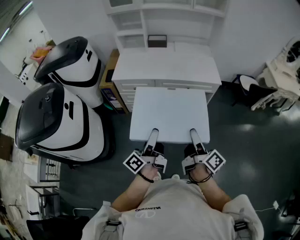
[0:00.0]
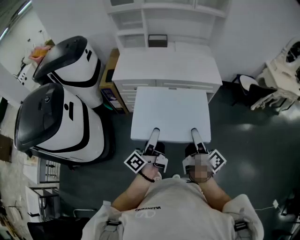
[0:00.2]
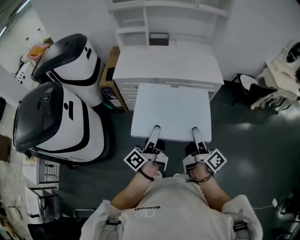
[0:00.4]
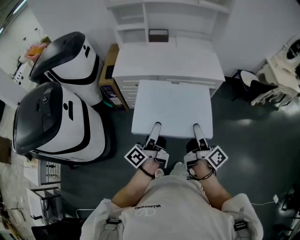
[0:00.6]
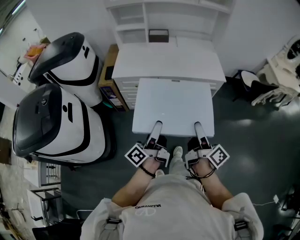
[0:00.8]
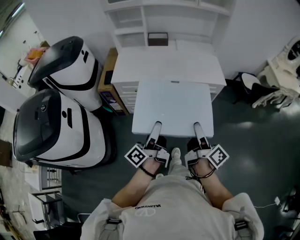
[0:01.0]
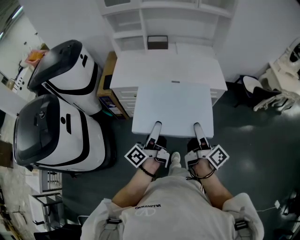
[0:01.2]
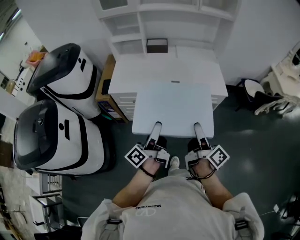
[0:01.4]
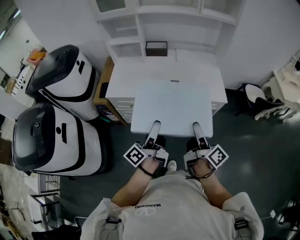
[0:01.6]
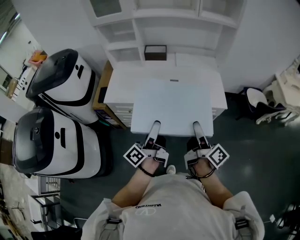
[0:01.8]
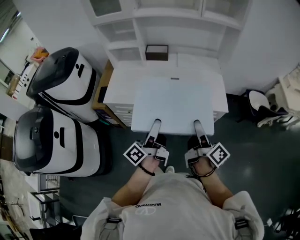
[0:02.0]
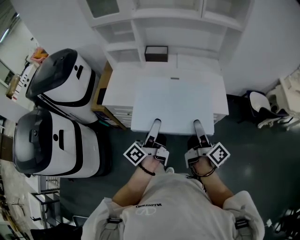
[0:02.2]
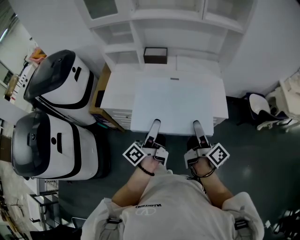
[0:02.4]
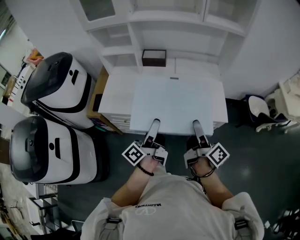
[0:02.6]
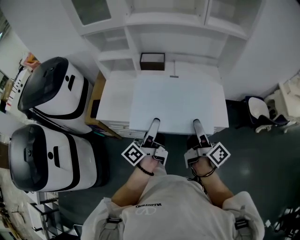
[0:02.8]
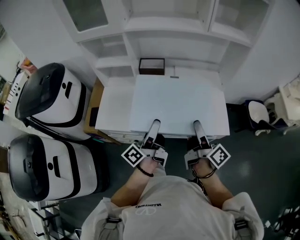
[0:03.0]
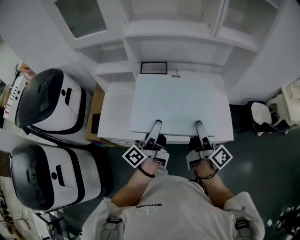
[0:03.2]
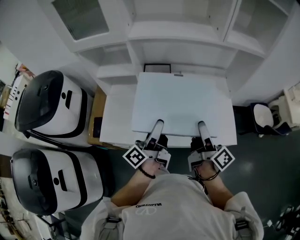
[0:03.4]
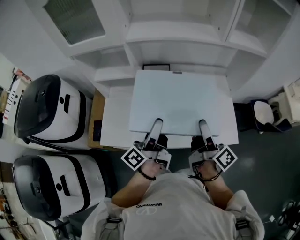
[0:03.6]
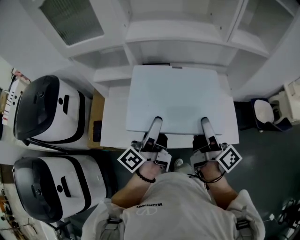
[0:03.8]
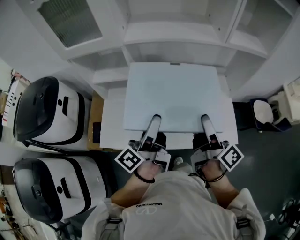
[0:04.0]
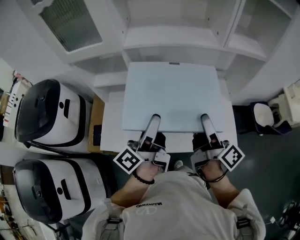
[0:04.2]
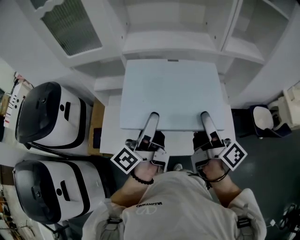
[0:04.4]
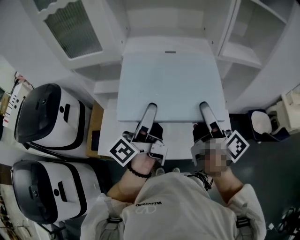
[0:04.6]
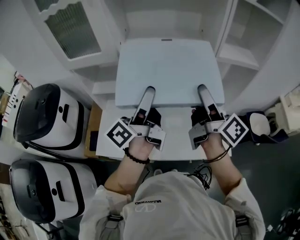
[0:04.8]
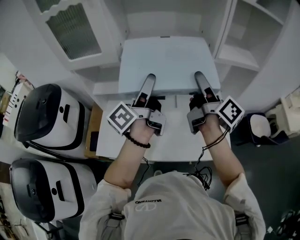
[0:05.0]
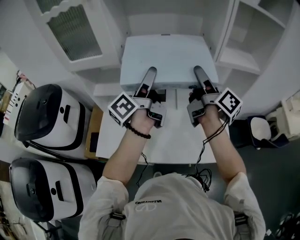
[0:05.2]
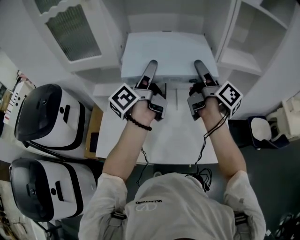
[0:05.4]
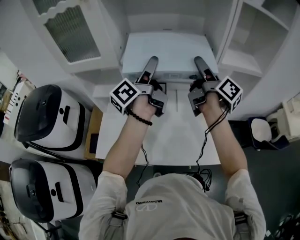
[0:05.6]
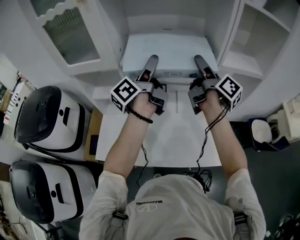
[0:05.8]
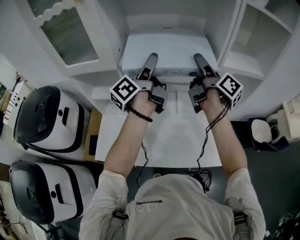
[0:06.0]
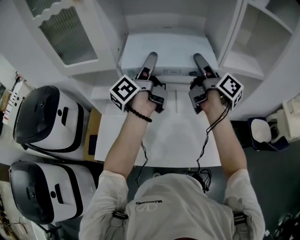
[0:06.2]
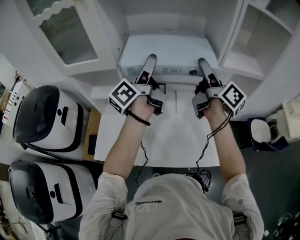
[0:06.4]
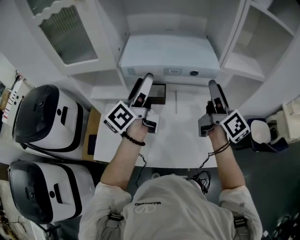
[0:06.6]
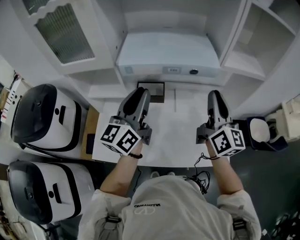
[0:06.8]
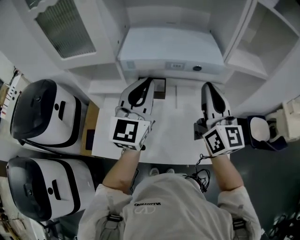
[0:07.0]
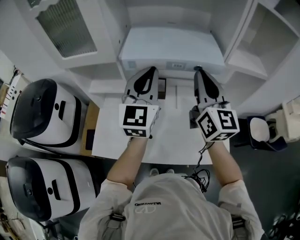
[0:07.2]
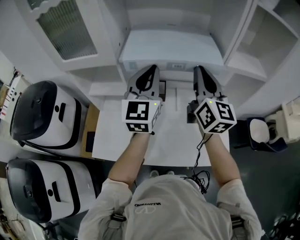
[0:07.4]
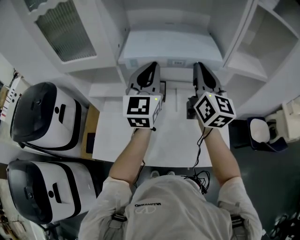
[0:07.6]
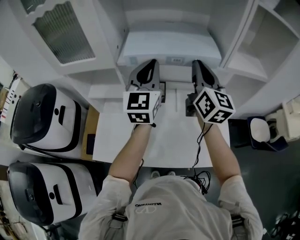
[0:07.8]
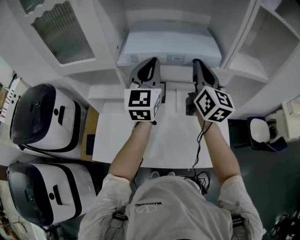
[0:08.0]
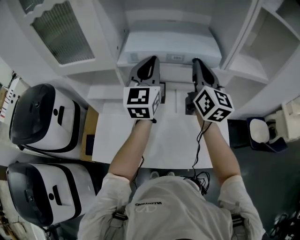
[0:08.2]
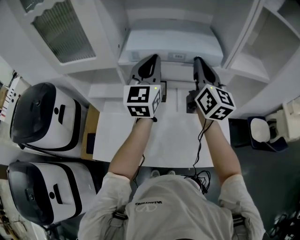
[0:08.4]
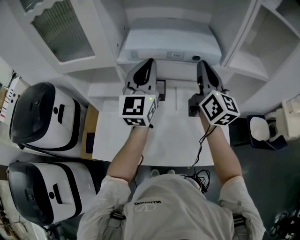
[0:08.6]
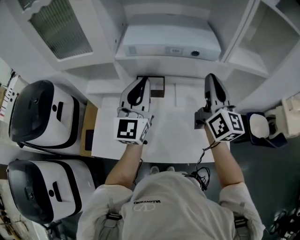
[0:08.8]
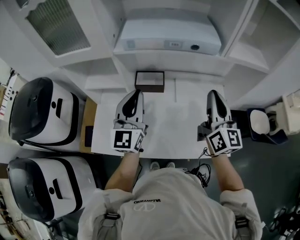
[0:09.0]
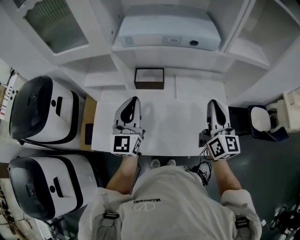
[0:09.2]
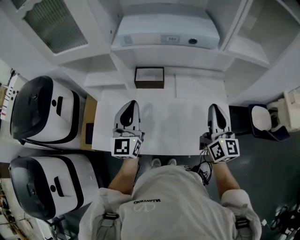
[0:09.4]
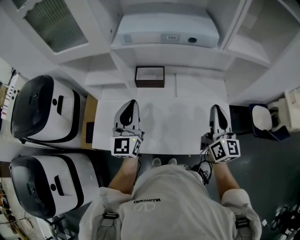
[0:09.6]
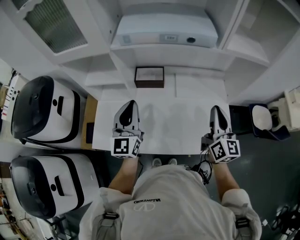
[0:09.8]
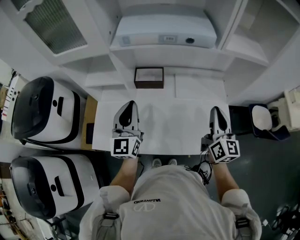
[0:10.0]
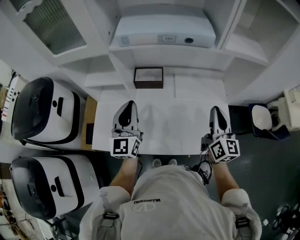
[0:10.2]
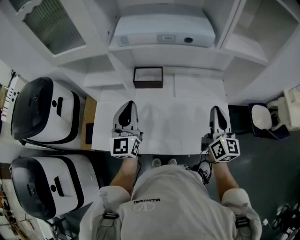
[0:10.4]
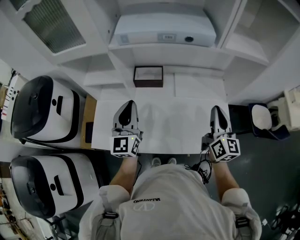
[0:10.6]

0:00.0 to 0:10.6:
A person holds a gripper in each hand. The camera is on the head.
0:00.0 to 0:01.6: Both grippers travel together forward, about 25 cm.
0:01.6 to 0:03.0: Both grippers move forward, approximately 25 cm.
0:03.0 to 0:04.6: Both grippers travel together forward and upward, roughly 20 cm.
0:04.6 to 0:06.0: The grippers both shift forward by about 20 cm.
0:06.0 to 0:07.6: The right gripper travels backward and back again, some 15 cm each way, twists approximately 60 degrees counterclockwise, seen from behind, and closes; the left gripper goes backward and returns, approximately 10 cm each way, rolls clockwise, seen from behind, by approximately 70 degrees, and closes up.
0:07.6 to 0:09.0: The left gripper heads downward and backward, covering some 10 cm. Meanwhile the right gripper goes roughly 15 cm backward, downward and to the right.
0:09.0 to 0:10.6: The left gripper is displaced downward by about 5 cm. The right gripper moves downward and to the right, roughly 10 cm.

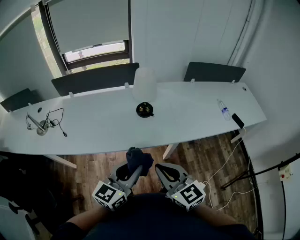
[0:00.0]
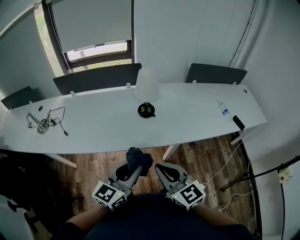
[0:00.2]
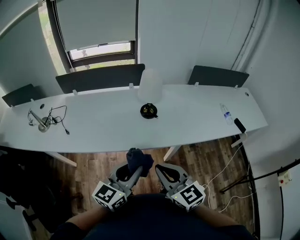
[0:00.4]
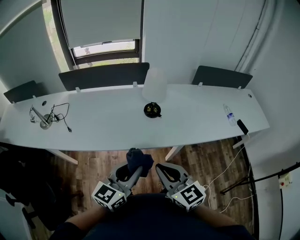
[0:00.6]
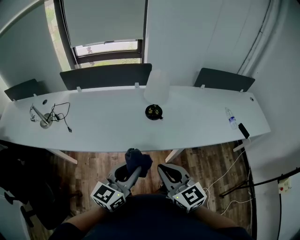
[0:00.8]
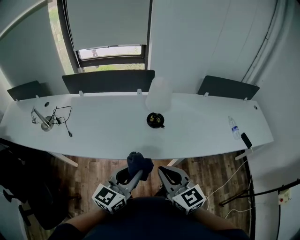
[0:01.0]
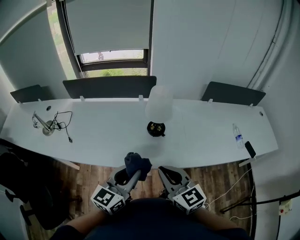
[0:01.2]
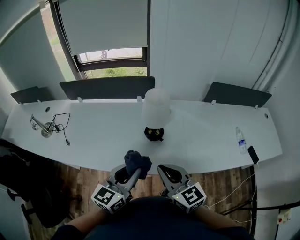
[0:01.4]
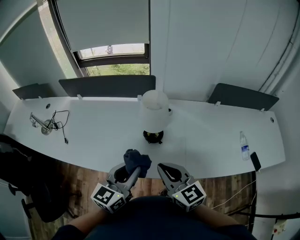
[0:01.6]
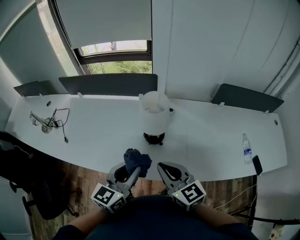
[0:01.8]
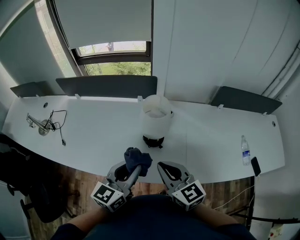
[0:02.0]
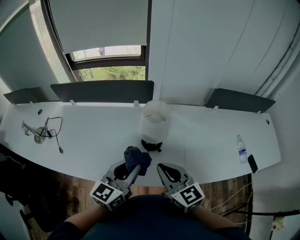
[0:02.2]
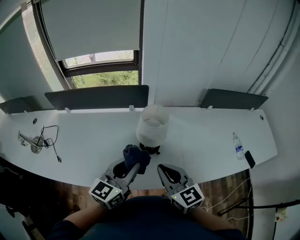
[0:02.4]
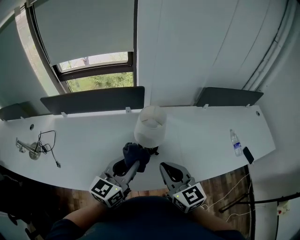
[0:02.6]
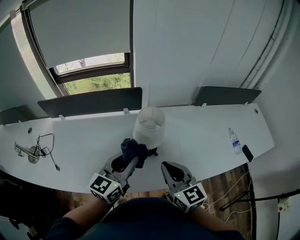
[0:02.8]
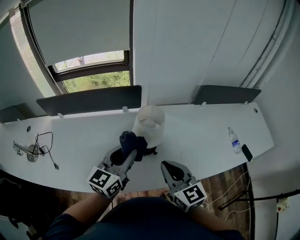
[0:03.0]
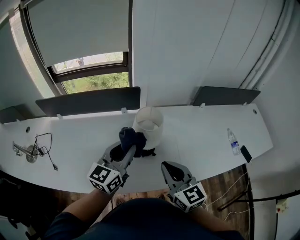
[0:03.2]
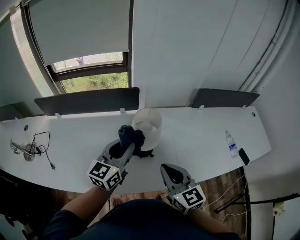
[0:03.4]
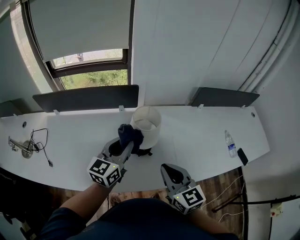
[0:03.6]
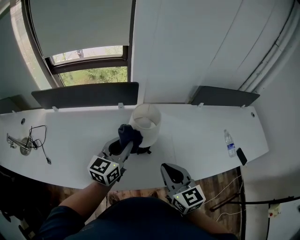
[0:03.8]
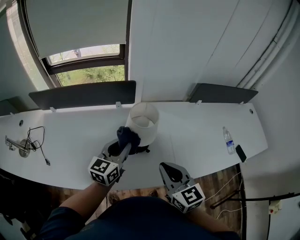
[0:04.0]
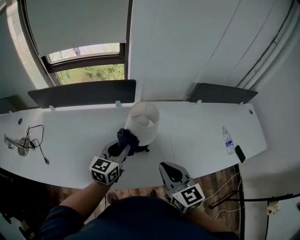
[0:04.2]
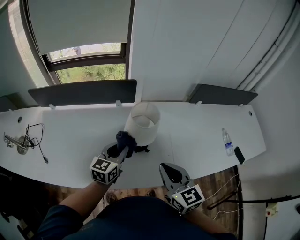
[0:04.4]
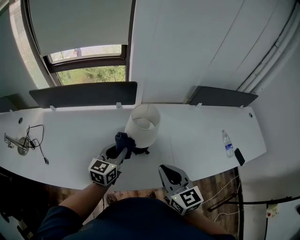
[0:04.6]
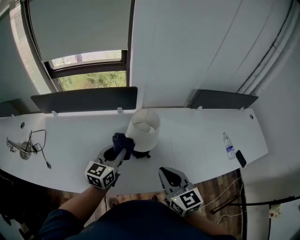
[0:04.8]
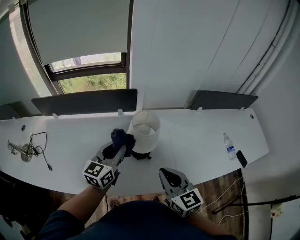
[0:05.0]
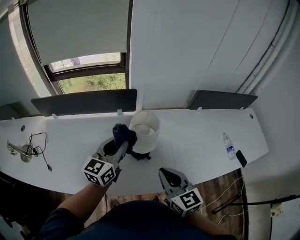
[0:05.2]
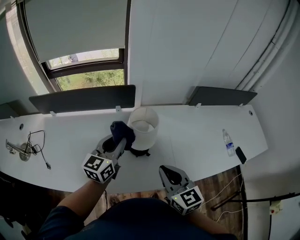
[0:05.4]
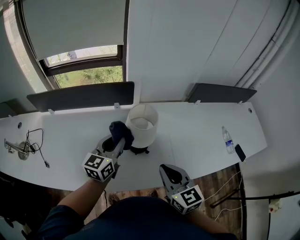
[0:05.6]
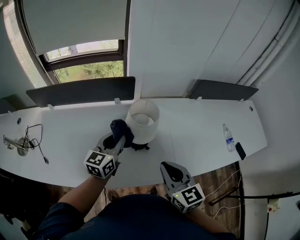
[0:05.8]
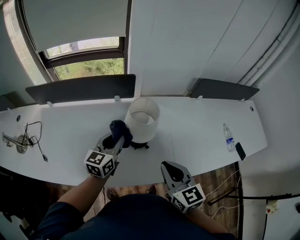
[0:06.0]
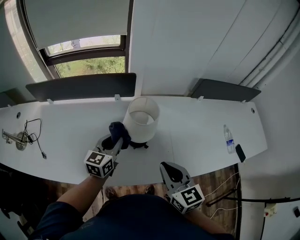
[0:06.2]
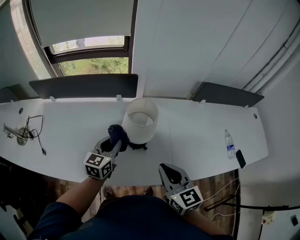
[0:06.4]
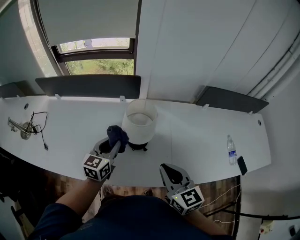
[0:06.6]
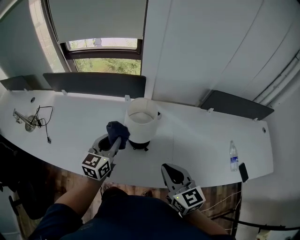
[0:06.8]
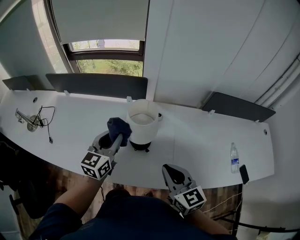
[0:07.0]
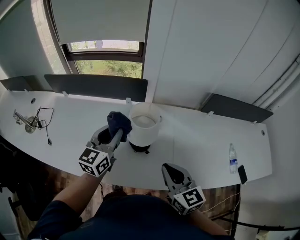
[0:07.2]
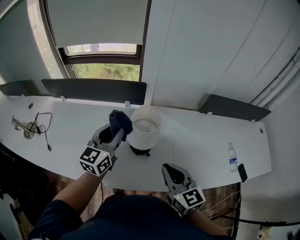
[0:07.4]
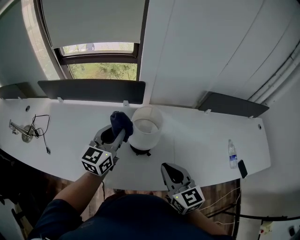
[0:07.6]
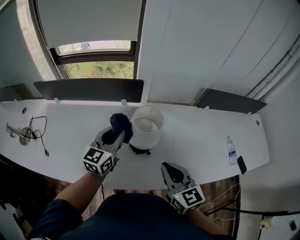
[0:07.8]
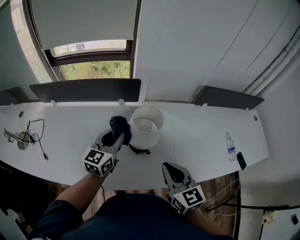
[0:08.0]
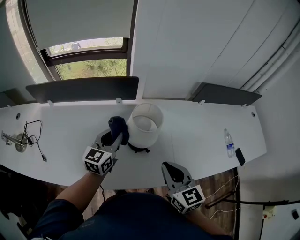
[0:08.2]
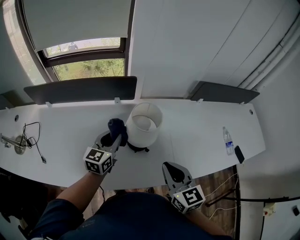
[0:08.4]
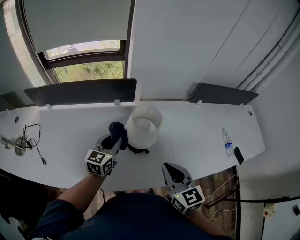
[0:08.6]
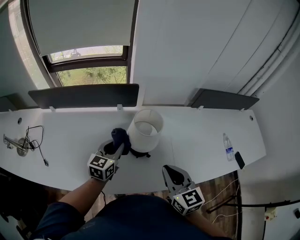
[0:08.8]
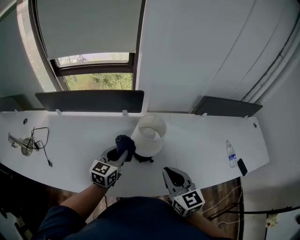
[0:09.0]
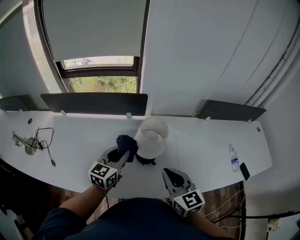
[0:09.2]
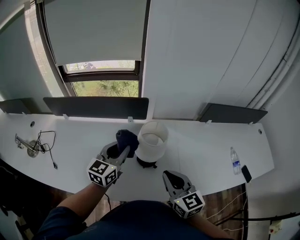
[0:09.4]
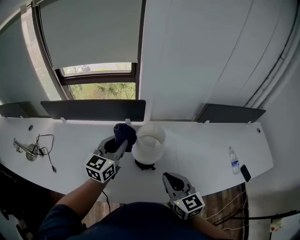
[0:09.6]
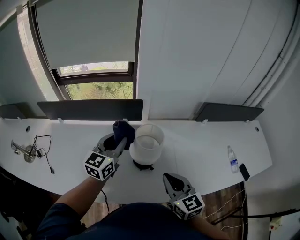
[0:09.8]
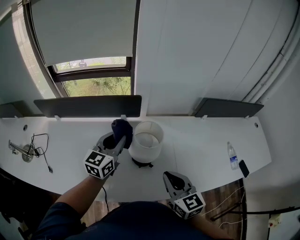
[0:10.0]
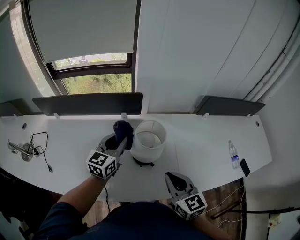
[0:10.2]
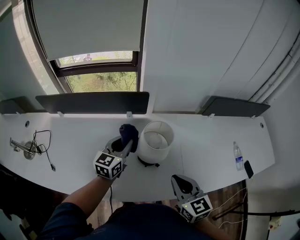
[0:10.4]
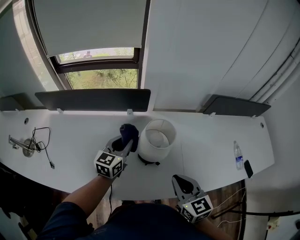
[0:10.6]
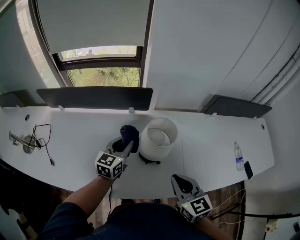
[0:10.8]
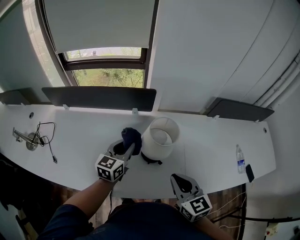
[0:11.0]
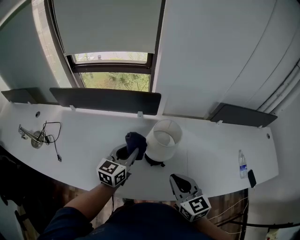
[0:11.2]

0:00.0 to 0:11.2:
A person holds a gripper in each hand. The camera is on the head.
0:00.0 to 0:01.6: The two grippers go roughly 25 cm forward.
0:01.6 to 0:03.2: The left gripper shifts some 15 cm forward. Meanwhile the right gripper is displaced forward by approximately 10 cm.
0:03.2 to 0:04.8: The left gripper heads downward, covering about 10 cm.
0:04.8 to 0:06.4: The left gripper travels downward by roughly 5 cm.
0:06.4 to 0:08.0: The left gripper is displaced upward by approximately 5 cm.
0:08.0 to 0:09.6: The left gripper goes about 5 cm upward.
0:09.6 to 0:11.2: The left gripper heads downward, covering roughly 10 cm.

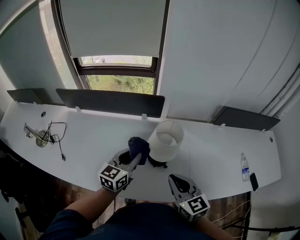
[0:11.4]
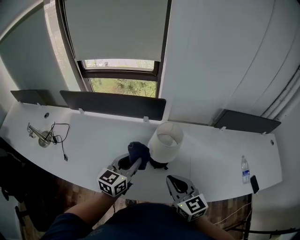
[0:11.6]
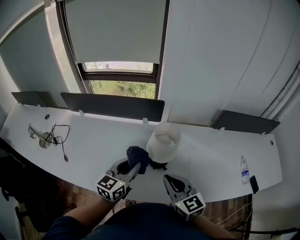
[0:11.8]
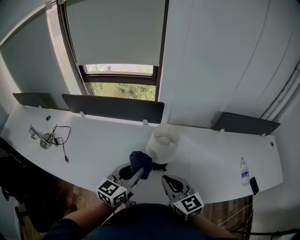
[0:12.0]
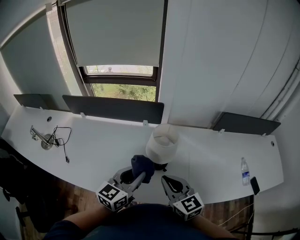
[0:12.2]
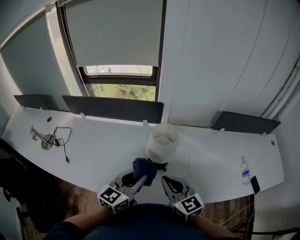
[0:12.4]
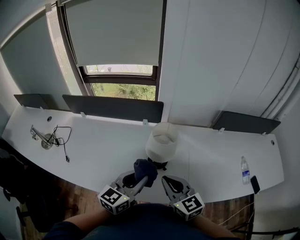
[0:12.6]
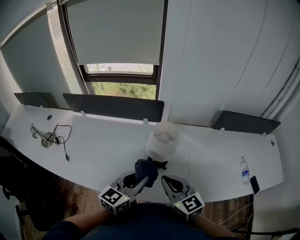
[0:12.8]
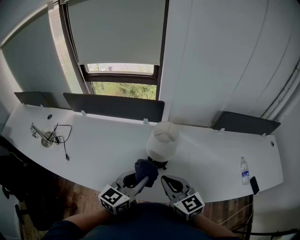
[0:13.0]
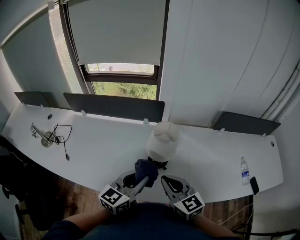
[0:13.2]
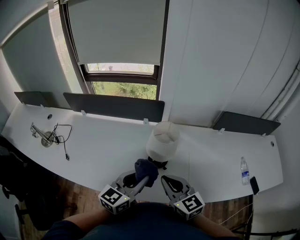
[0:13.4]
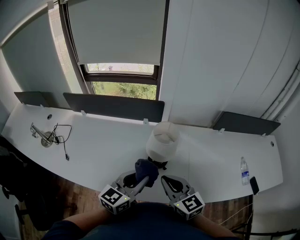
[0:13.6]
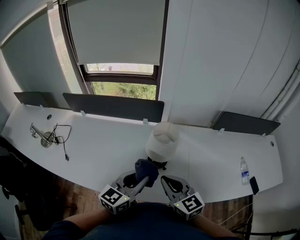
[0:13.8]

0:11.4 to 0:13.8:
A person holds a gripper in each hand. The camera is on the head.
0:11.4 to 0:12.6: The left gripper travels backward by roughly 10 cm.
0:12.6 to 0:13.8: Neither gripper changes place.
